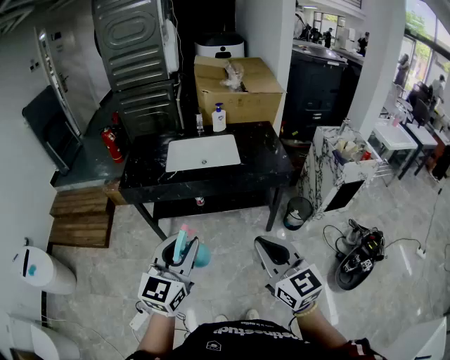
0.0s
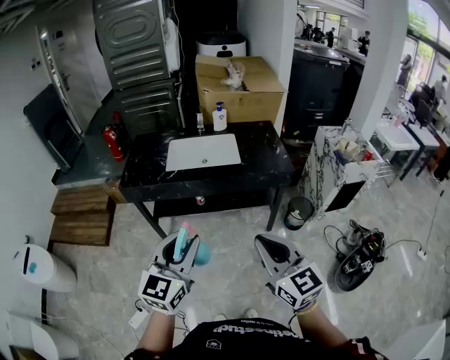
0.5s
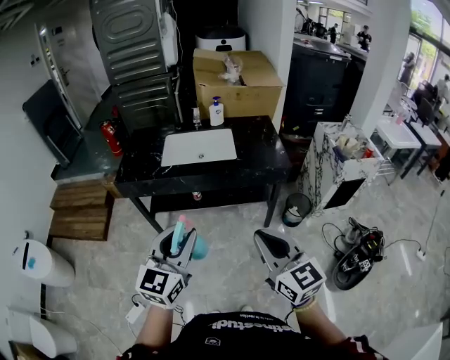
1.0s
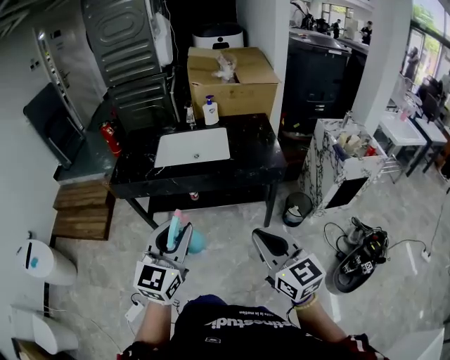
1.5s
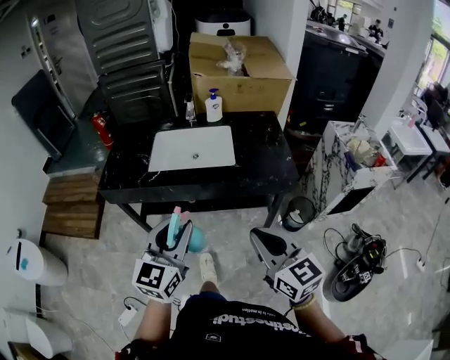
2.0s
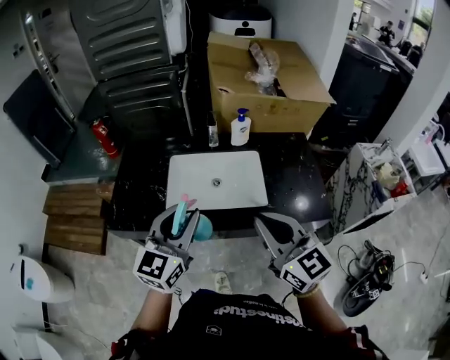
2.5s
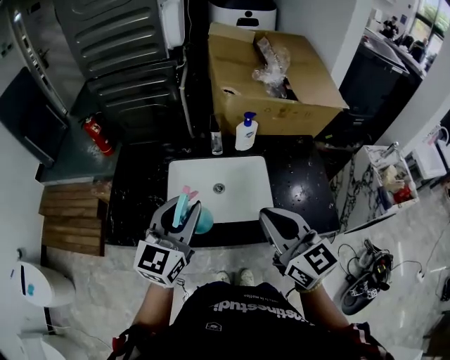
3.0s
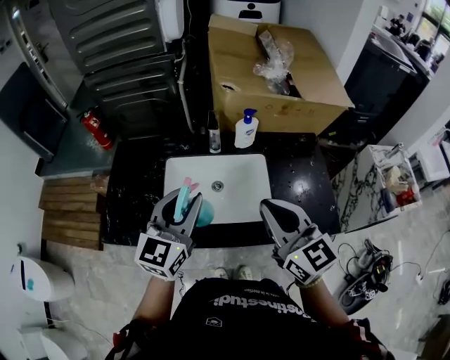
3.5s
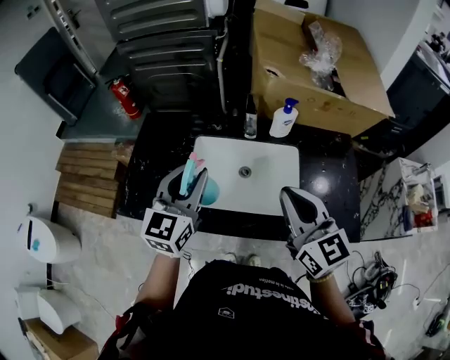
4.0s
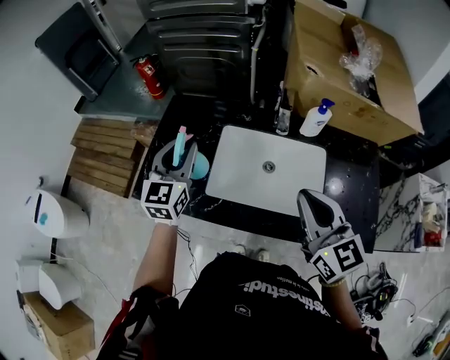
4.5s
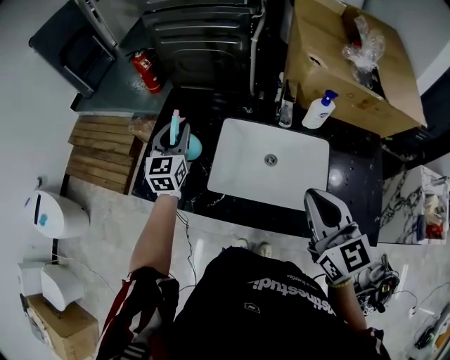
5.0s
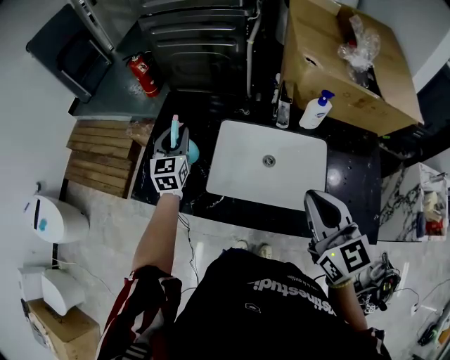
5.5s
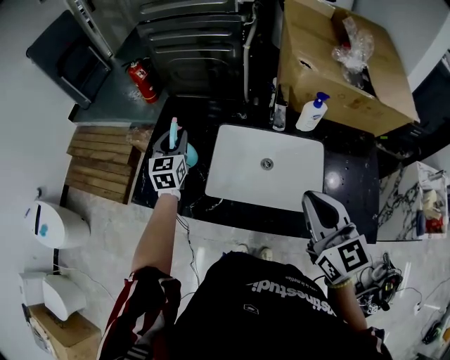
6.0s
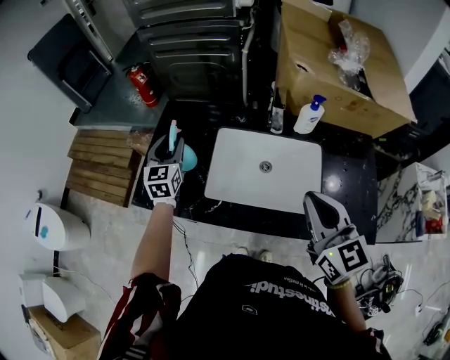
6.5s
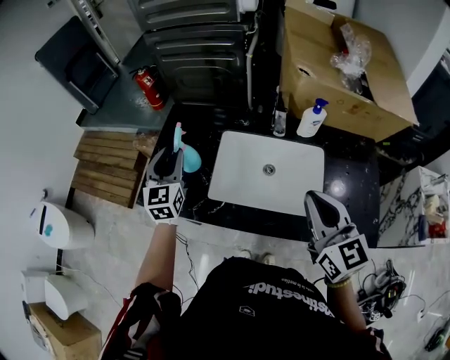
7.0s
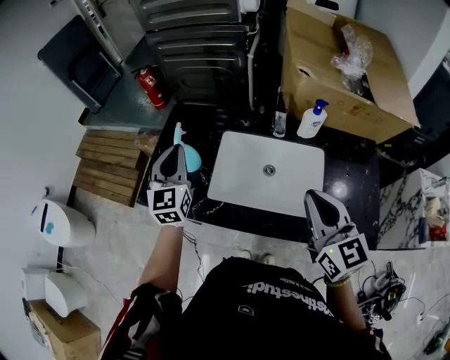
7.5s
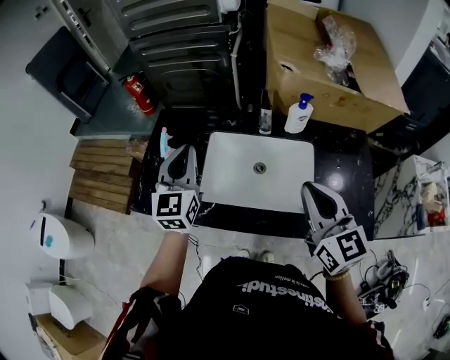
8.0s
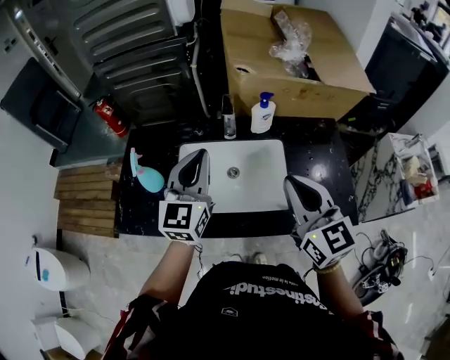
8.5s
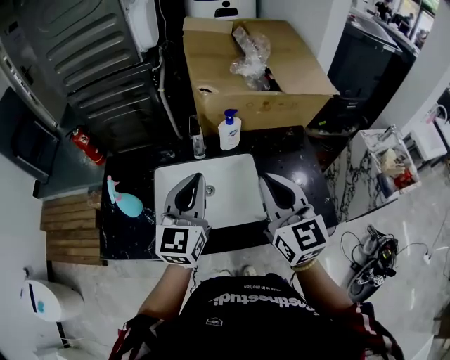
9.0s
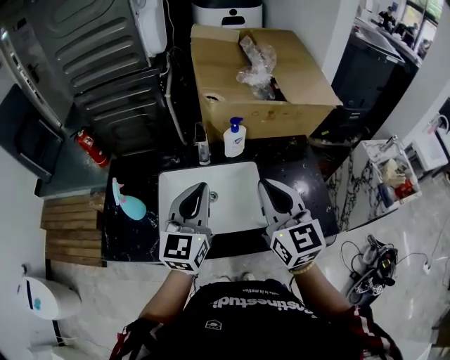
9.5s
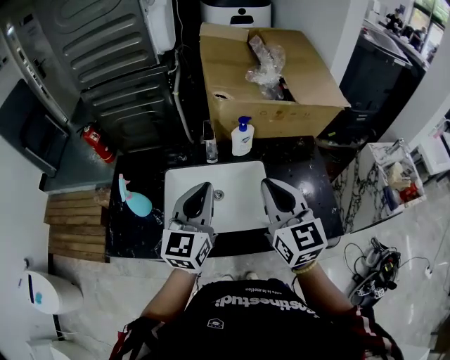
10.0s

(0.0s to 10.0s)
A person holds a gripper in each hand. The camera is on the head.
0.0s - 2.0s: The right gripper shifts approximately 20 cm forward and to the right. The left gripper heads forward, covering approximately 20 cm.
2.0s - 4.0s: The pair of grippers is taken forward, some 40 cm.
4.0s - 6.0s: The left gripper moves forward, to the left and downward, approximately 25 cm, and rotates about 20 degrees.
6.0s - 8.0s: The left gripper shifts some 20 cm upward, backward and to the right, and closes its fingers.
8.0s - 10.0s: The right gripper moves some 5 cm. Meanwhile the left gripper goes some 20 cm to the right, and changes its angle by approximately 20 degrees.

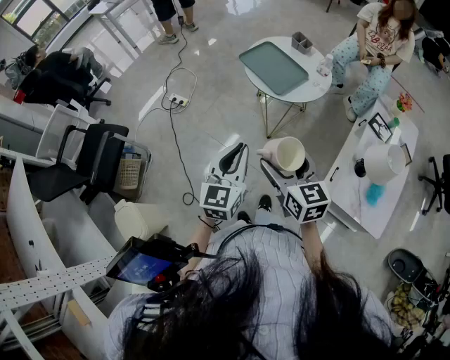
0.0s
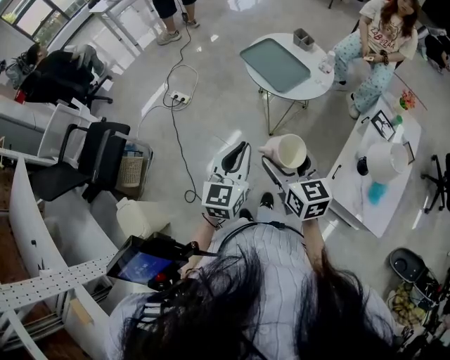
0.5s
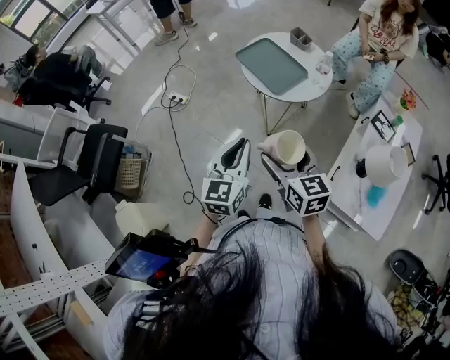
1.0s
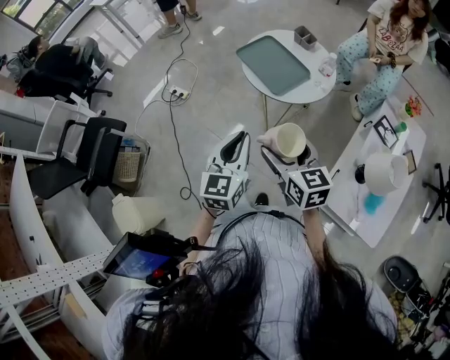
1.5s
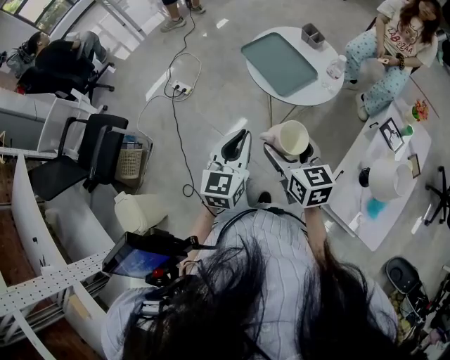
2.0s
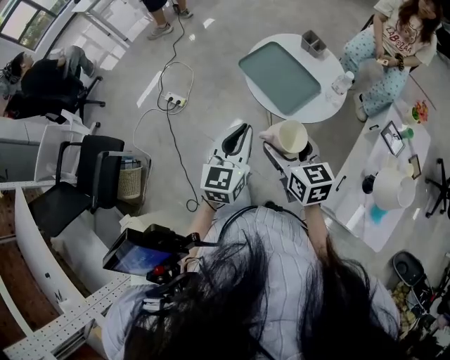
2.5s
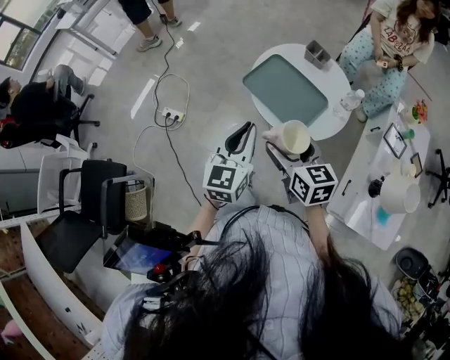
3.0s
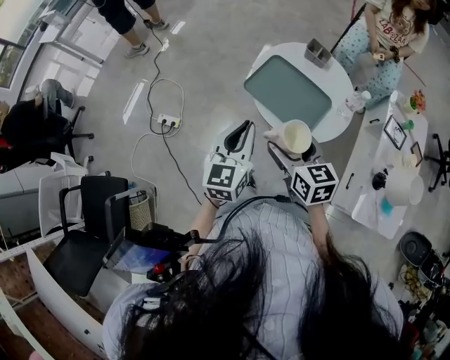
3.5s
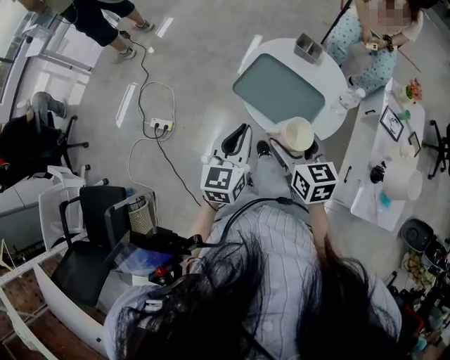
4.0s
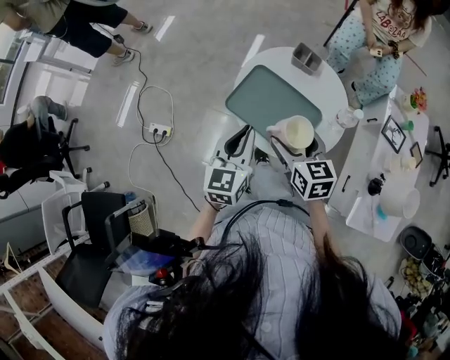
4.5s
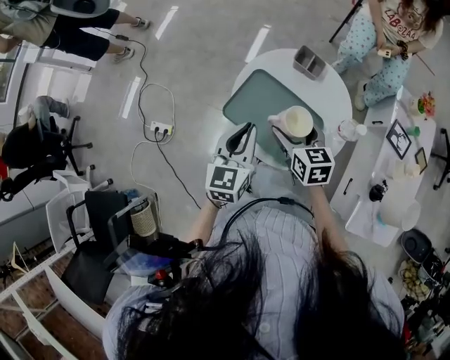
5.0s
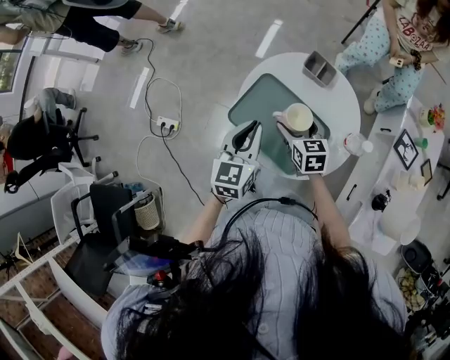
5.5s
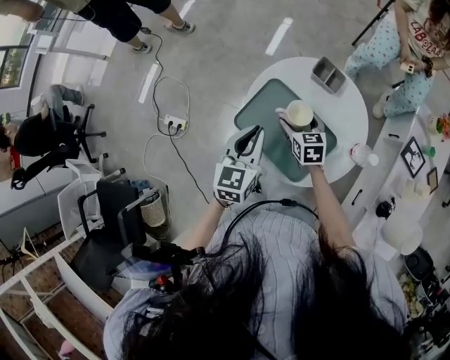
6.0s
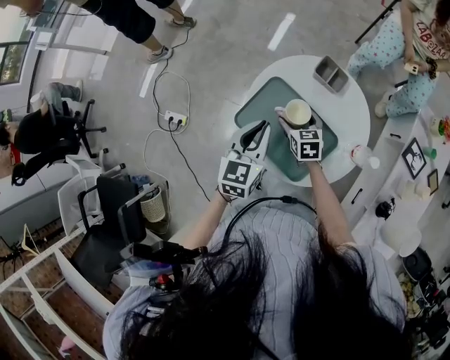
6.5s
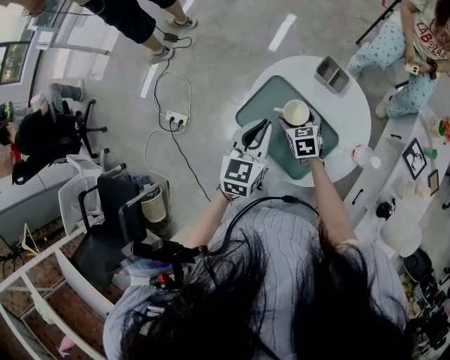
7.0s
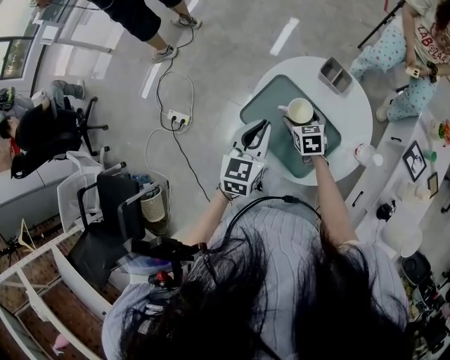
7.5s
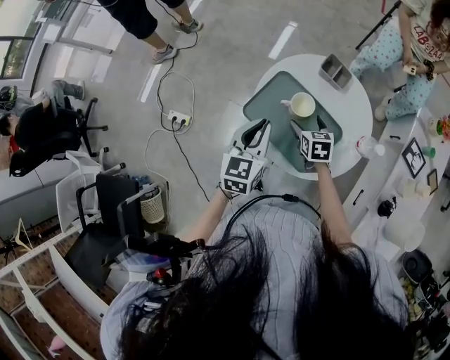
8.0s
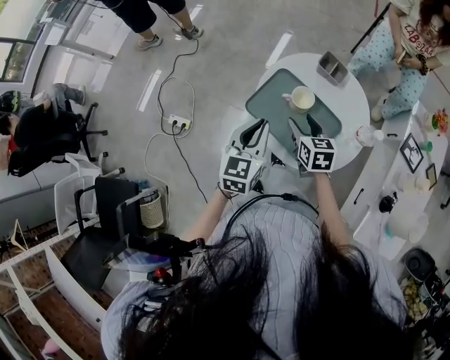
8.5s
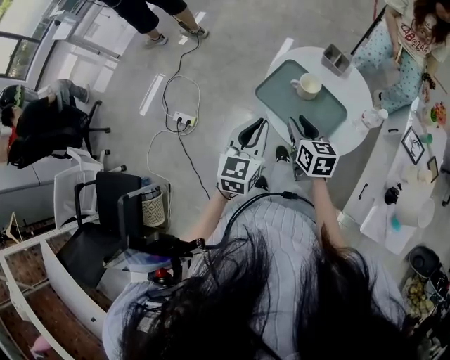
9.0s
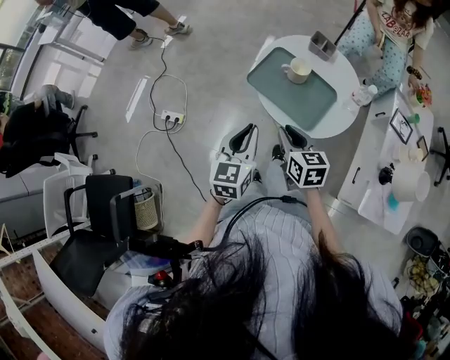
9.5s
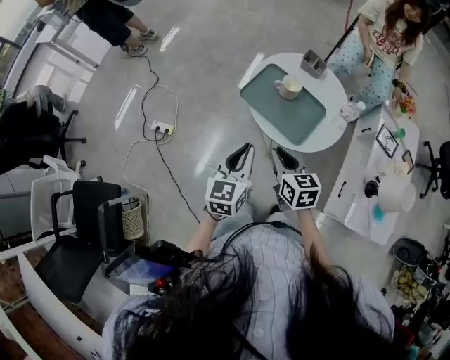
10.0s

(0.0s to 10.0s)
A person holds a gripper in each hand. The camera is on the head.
0.0s - 2.0s: The grippers both shift forward by some 10 cm.
2.0s - 4.0s: The grippers both shift forward by some 30 cm. The right gripper turns by about 20 degrees.
4.0s - 6.0s: The left gripper goes some 15 cm forward, while the right gripper moves forward and downward, some 30 cm.
6.0s - 8.0s: The grippers stay close to where they were, moving slightly.
8.0s - 10.0s: The left gripper moves backward, approximately 20 cm. The right gripper moves backward, upward and to the left, some 30 cm, and closes its fingers.

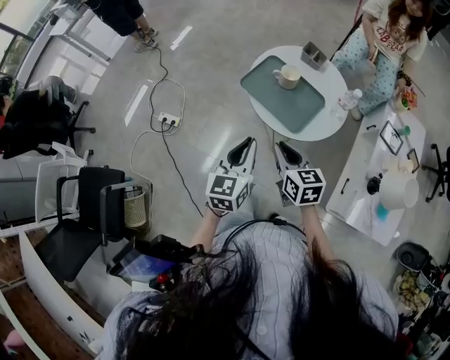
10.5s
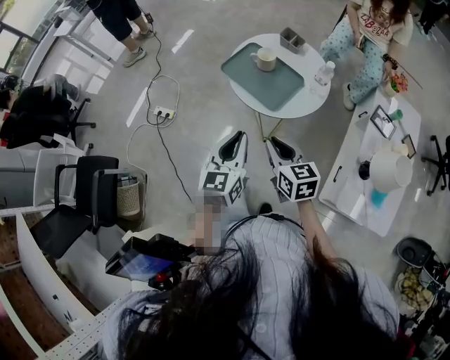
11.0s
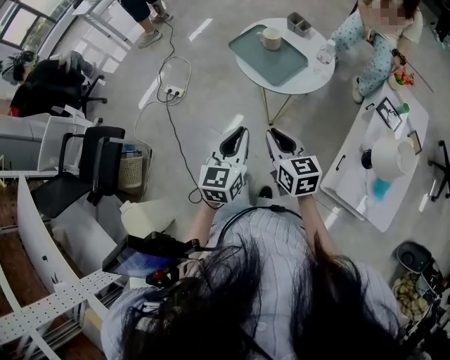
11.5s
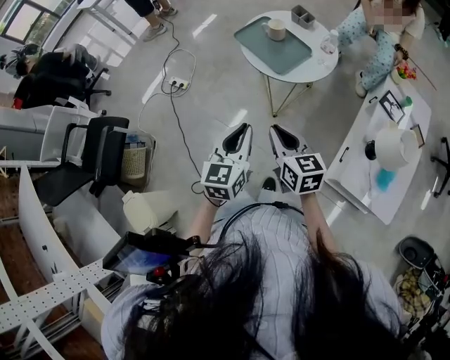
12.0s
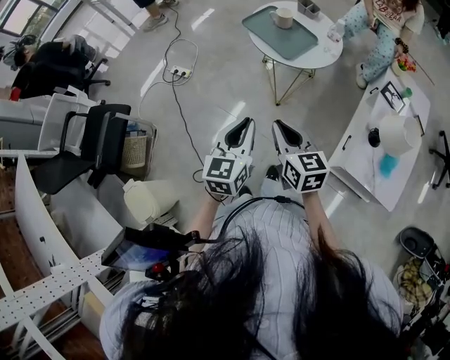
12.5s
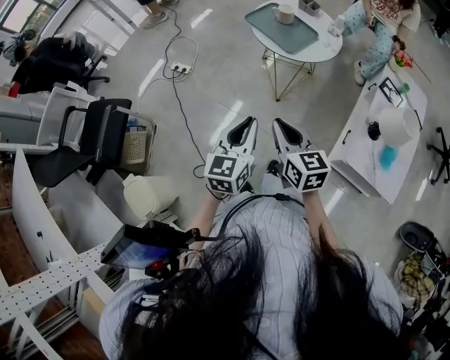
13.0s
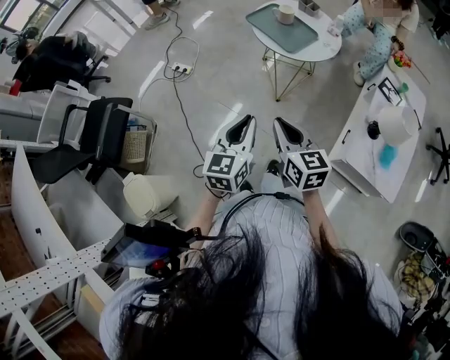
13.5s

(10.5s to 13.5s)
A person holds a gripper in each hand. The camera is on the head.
10.5s - 12.0s: Both grippers move backward, some 25 cm.
12.0s - 13.5s: Both grippers move backward and to the left, about 10 cm.

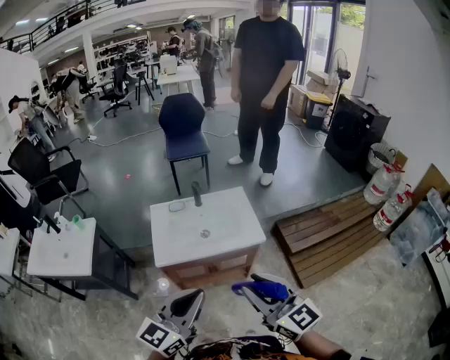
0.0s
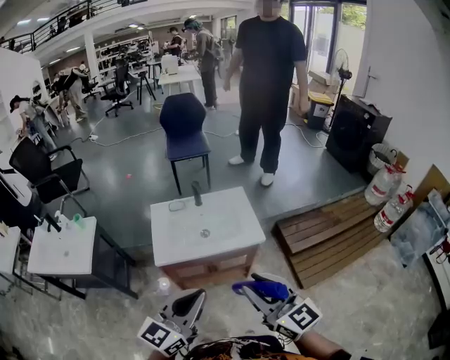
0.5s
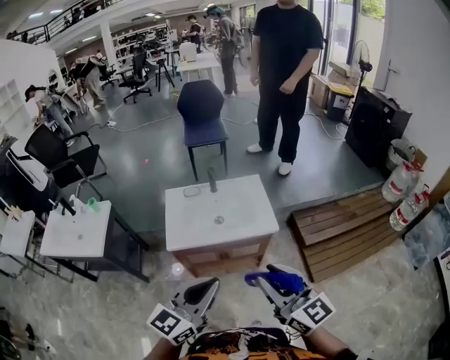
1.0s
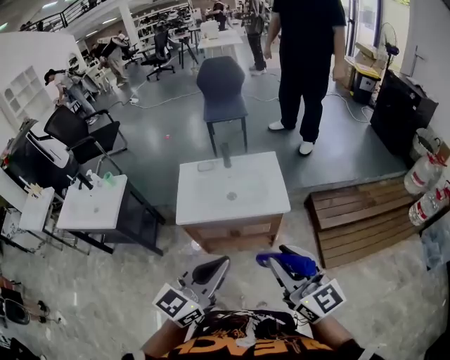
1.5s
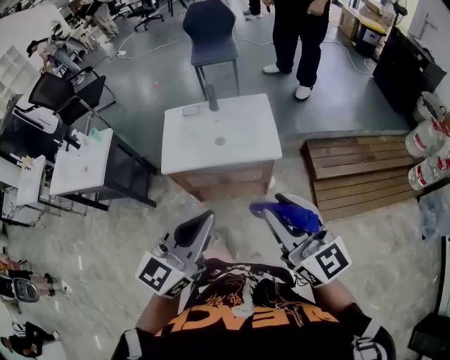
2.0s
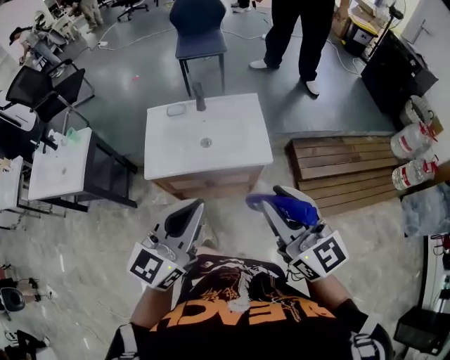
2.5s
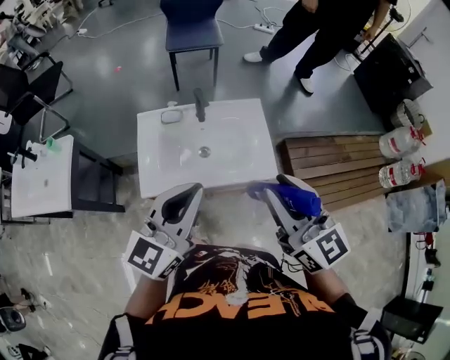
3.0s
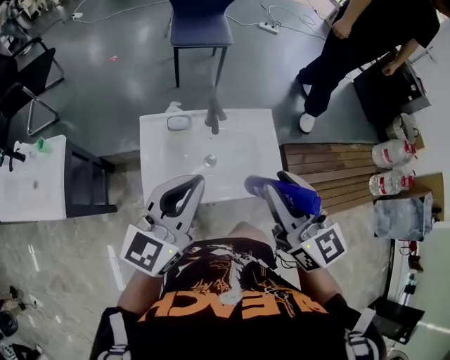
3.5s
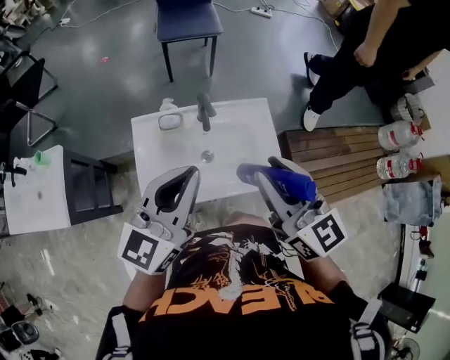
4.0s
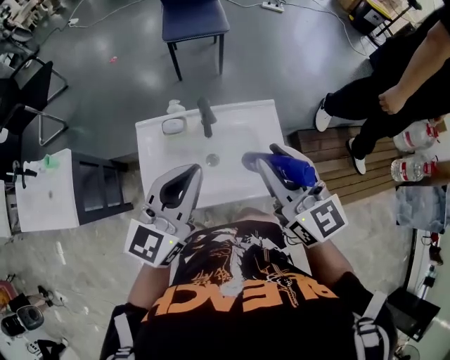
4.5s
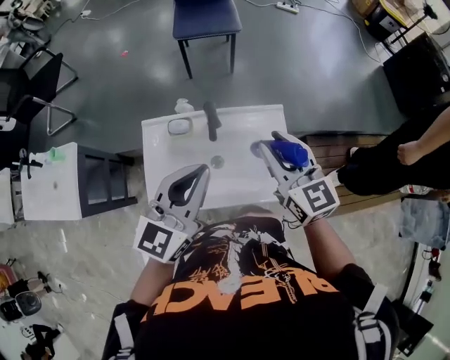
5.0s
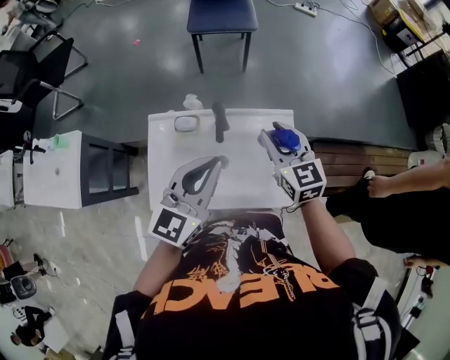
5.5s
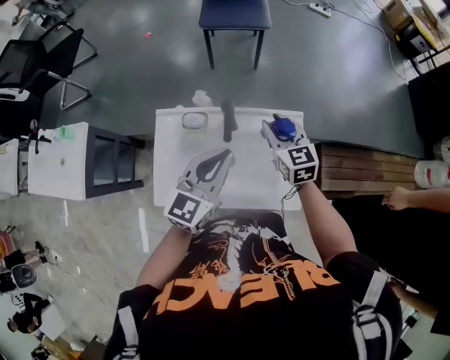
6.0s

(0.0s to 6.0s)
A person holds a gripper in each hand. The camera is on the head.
0.0s - 2.0s: Both grippers move to the right, roughly 15 cm.
2.0s - 4.0s: Both grippers travel together forward and to the left, approximately 40 cm.
4.0s - 6.0s: The left gripper shifts approximately 20 cm downward, forward and to the right. The right gripper travels forward and downward by roughly 35 cm, and changes its angle by some 20 degrees.
